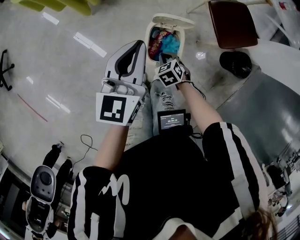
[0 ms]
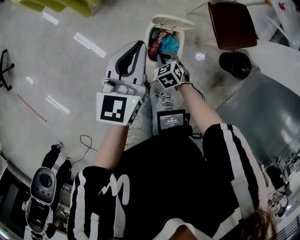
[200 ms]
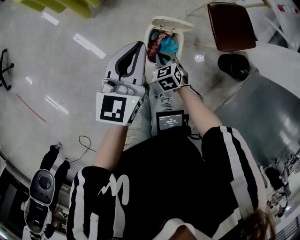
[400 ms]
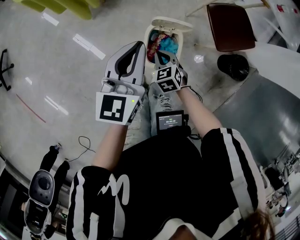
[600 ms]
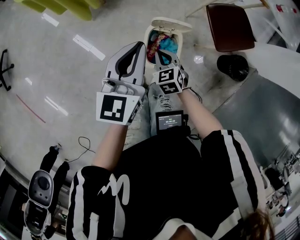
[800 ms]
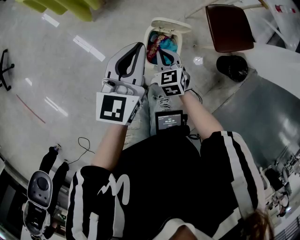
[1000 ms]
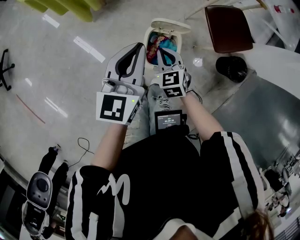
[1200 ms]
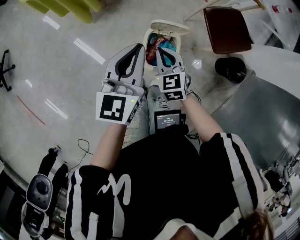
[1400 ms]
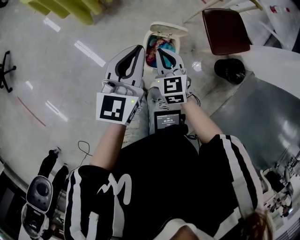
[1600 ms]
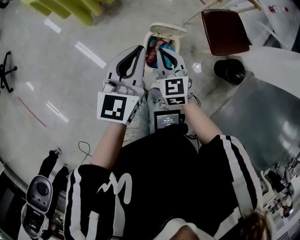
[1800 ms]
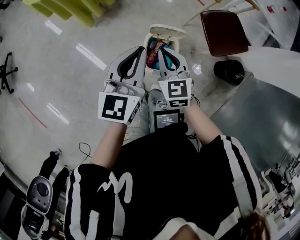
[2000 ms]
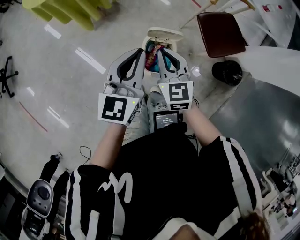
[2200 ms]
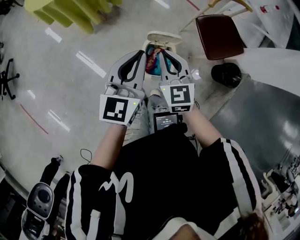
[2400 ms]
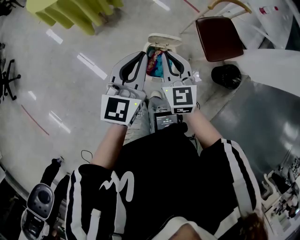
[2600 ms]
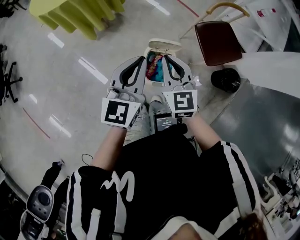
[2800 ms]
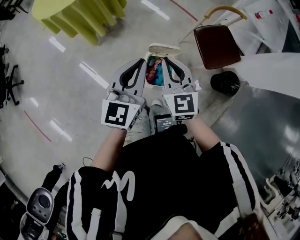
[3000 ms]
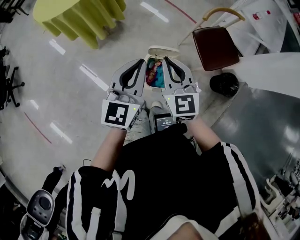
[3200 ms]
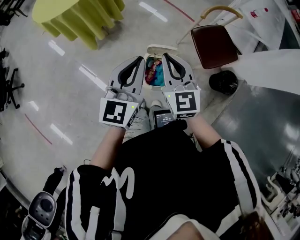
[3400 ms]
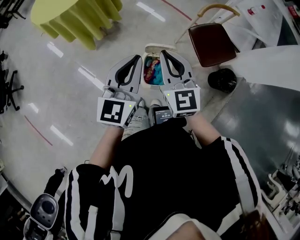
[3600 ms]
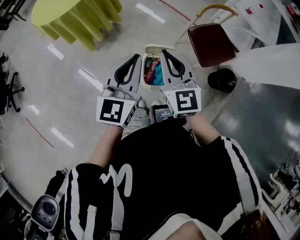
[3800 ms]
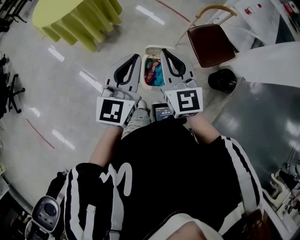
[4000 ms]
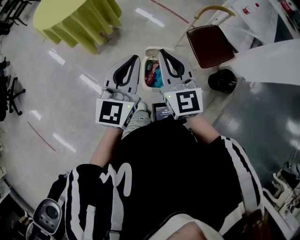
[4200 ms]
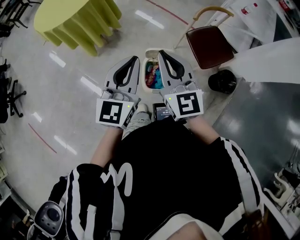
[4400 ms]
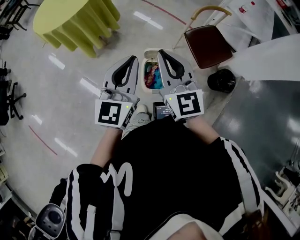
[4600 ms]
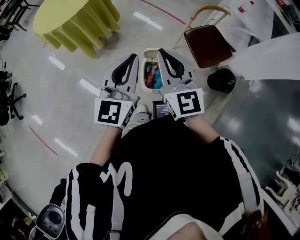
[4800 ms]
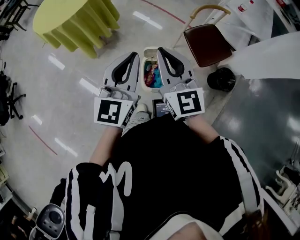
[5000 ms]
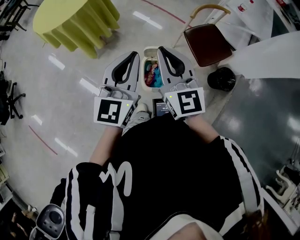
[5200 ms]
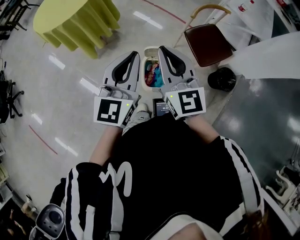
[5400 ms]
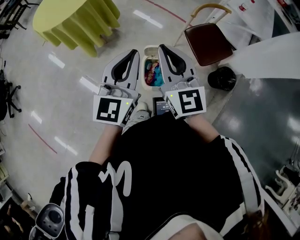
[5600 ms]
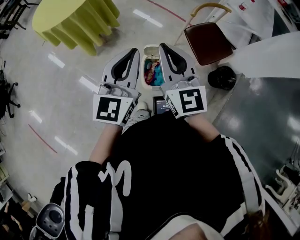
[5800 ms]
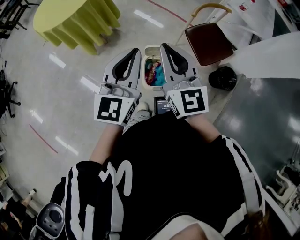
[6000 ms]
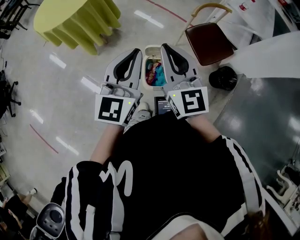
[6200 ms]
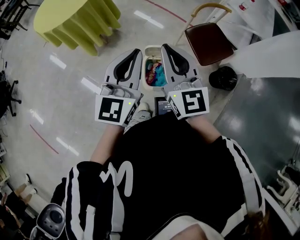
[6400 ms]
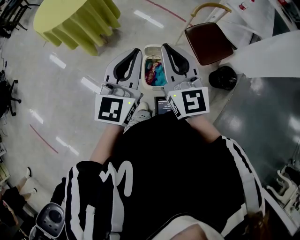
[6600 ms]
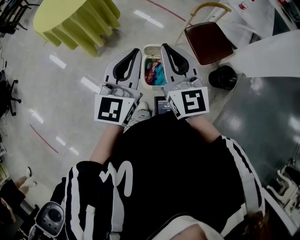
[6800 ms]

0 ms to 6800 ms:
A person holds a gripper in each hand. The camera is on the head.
0 ms to 1400 ms: The right gripper travels upward by about 20 cm, and changes its angle by approximately 30 degrees.
1400 ms to 2800 ms: The left gripper shifts roughly 5 cm upward. The right gripper travels upward by approximately 15 cm.
2800 ms to 4000 ms: The left gripper moves upward, approximately 5 cm; the right gripper shifts about 10 cm upward.
4000 ms to 5400 ms: There are only small adjustments of the grippers.
5400 ms to 6800 ms: Both grippers stay put.

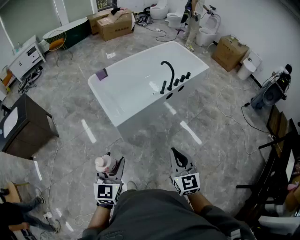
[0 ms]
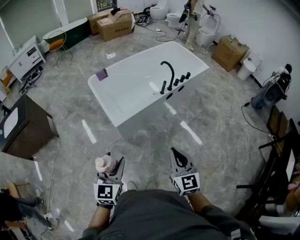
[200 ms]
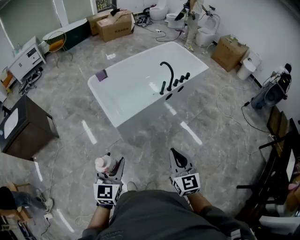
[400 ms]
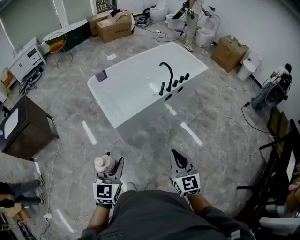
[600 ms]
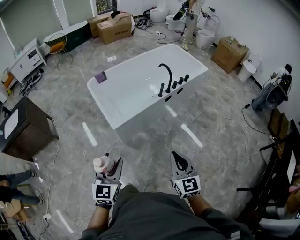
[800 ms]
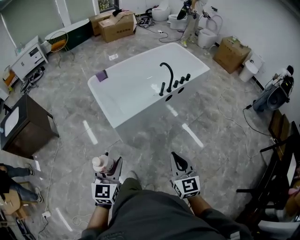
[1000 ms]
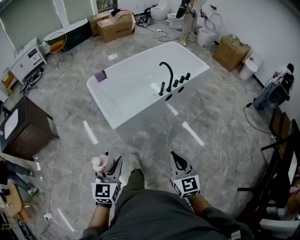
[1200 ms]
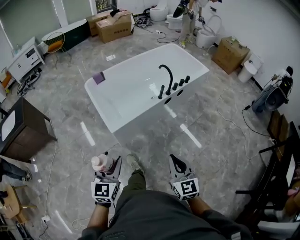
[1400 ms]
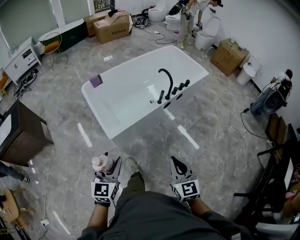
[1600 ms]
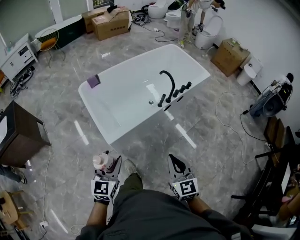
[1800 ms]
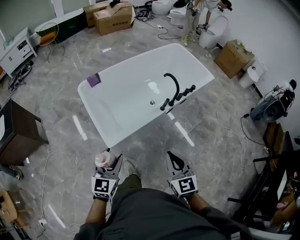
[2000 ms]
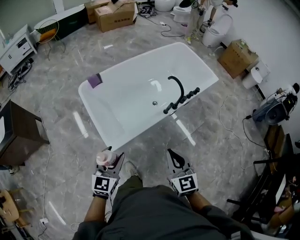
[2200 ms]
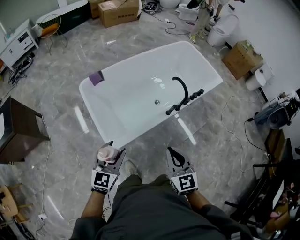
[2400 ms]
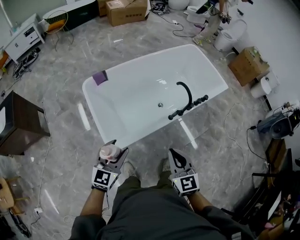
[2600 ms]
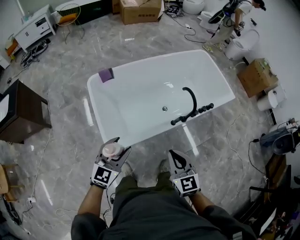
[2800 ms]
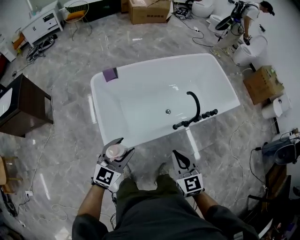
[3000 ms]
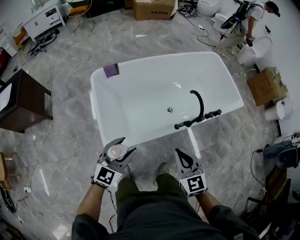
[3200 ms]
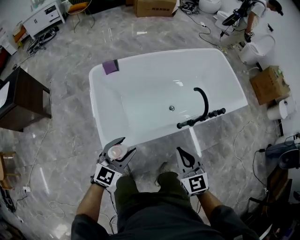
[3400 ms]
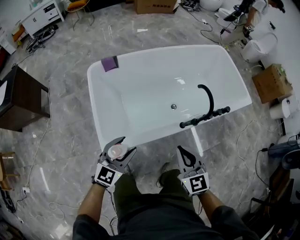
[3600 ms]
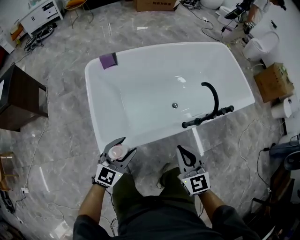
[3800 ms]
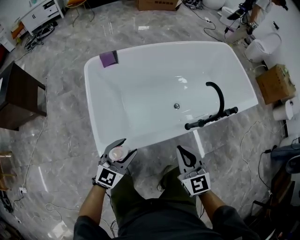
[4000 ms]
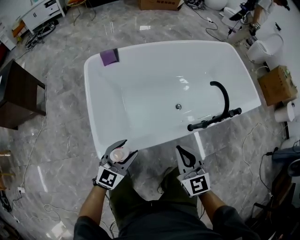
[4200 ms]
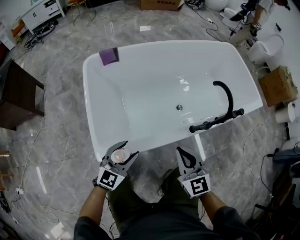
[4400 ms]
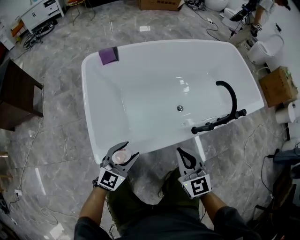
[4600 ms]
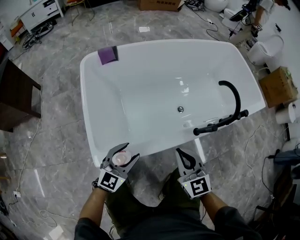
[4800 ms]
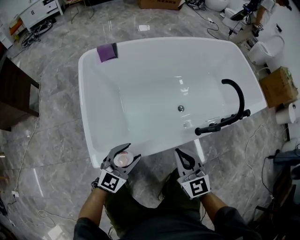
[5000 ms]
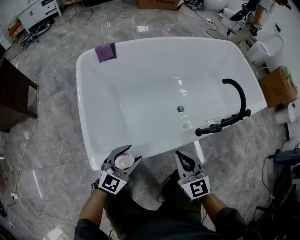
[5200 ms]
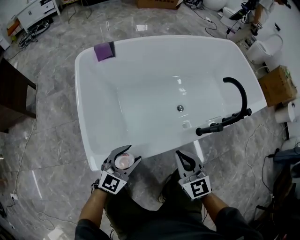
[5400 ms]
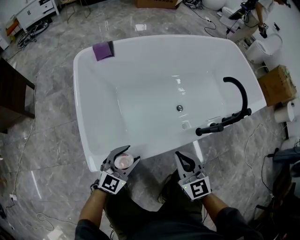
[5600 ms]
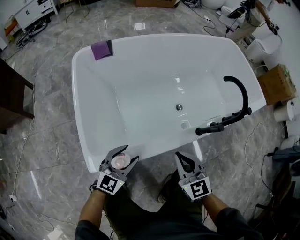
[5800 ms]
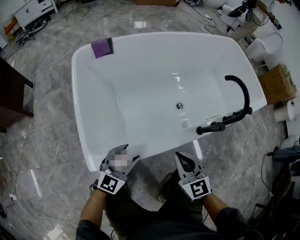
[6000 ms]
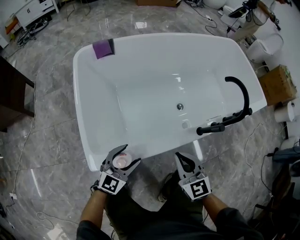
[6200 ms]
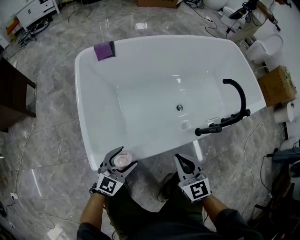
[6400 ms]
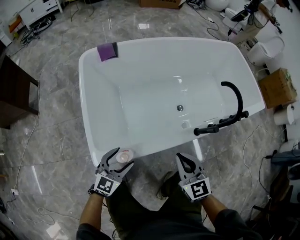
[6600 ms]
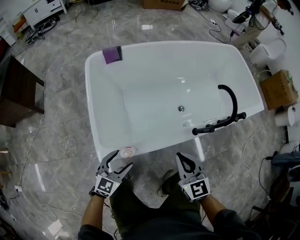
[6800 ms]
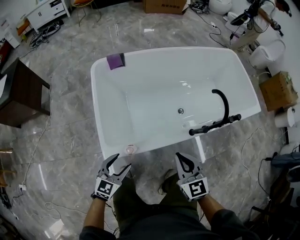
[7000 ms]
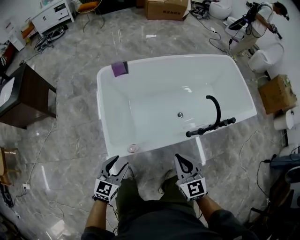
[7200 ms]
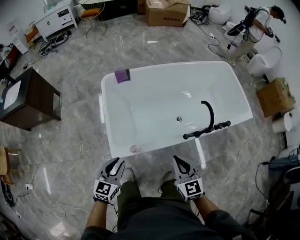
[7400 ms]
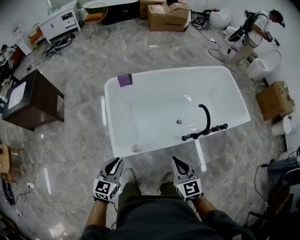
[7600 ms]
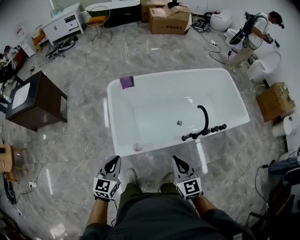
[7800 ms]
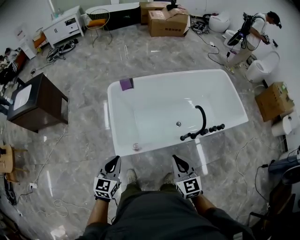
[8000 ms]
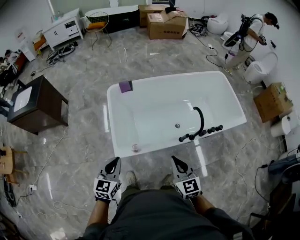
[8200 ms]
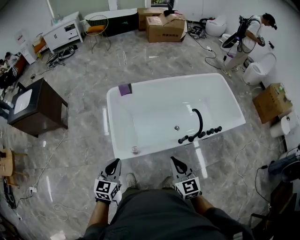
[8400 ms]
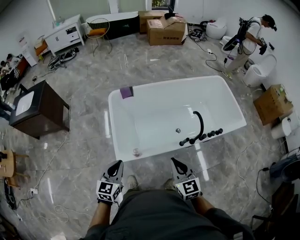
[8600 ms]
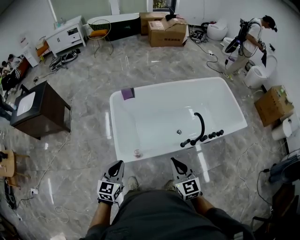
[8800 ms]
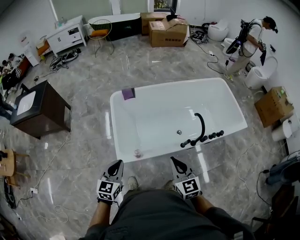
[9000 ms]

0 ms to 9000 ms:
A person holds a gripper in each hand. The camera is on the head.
0 ms to 1600 ms: Both grippers move forward, approximately 10 cm.
1600 ms to 3000 ms: Both grippers move forward, roughly 35 cm. The right gripper turns by approximately 20 degrees.
3000 ms to 4400 ms: Both grippers travel together downward, roughly 25 cm.
4400 ms to 6000 ms: Both grippers travel together downward, roughly 10 cm.
6000 ms to 7600 ms: The grippers both shift upward by some 35 cm. The left gripper swivels approximately 30 degrees, and closes up.
7600 ms to 9000 ms: The grippers both shift upward by roughly 5 cm.

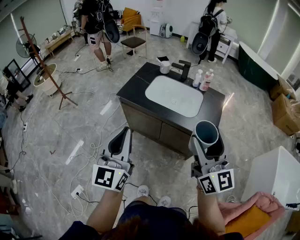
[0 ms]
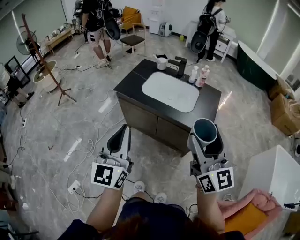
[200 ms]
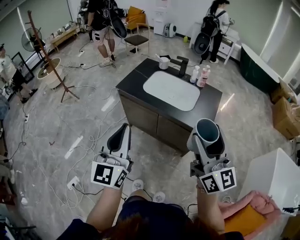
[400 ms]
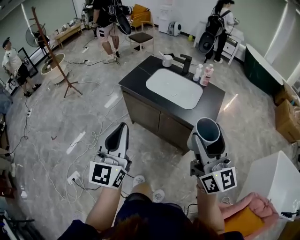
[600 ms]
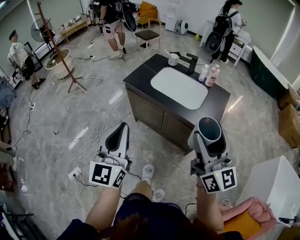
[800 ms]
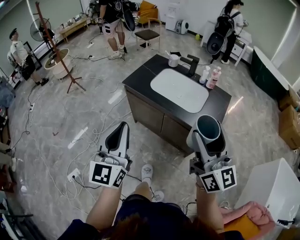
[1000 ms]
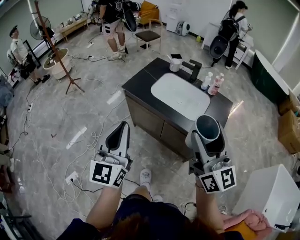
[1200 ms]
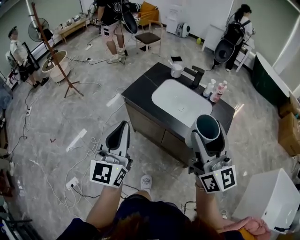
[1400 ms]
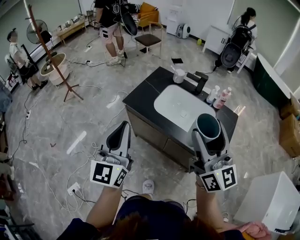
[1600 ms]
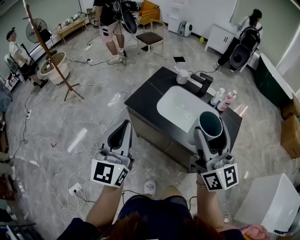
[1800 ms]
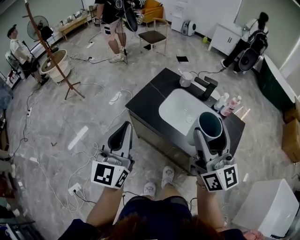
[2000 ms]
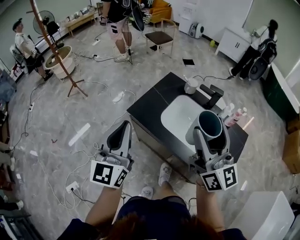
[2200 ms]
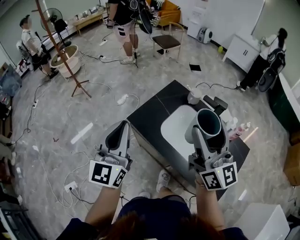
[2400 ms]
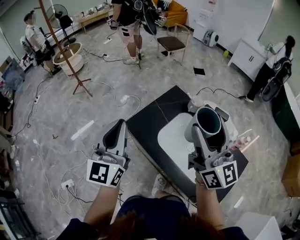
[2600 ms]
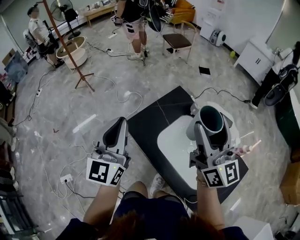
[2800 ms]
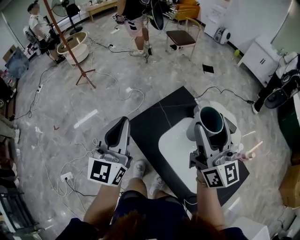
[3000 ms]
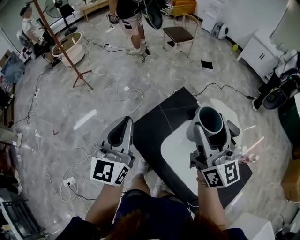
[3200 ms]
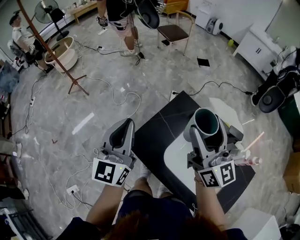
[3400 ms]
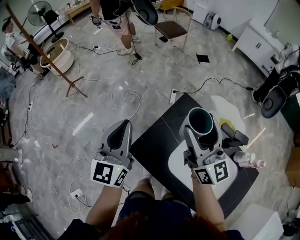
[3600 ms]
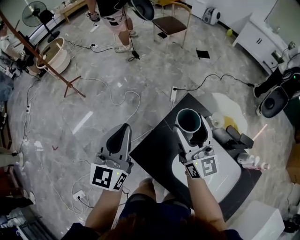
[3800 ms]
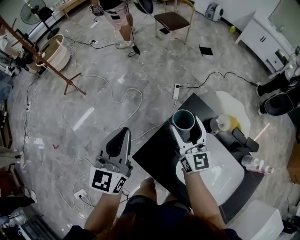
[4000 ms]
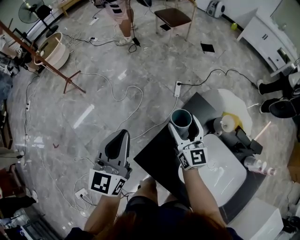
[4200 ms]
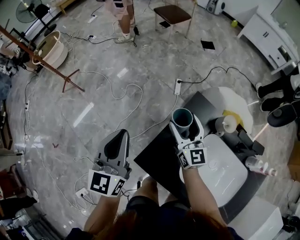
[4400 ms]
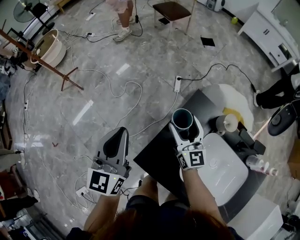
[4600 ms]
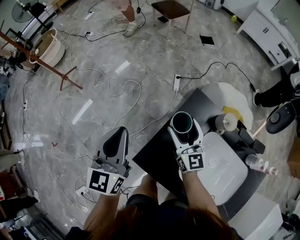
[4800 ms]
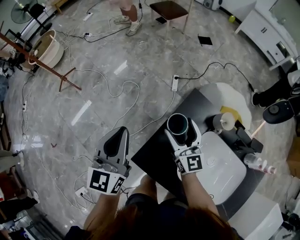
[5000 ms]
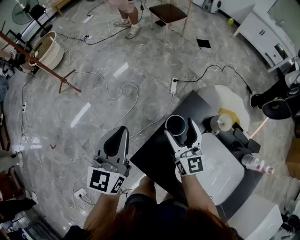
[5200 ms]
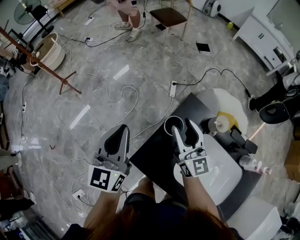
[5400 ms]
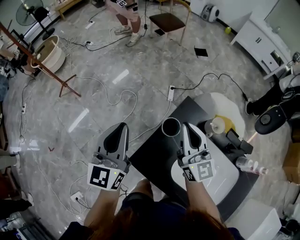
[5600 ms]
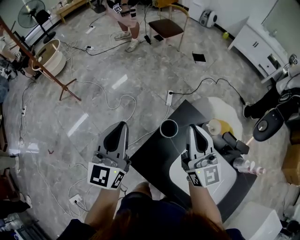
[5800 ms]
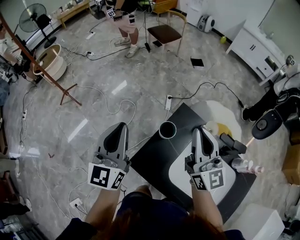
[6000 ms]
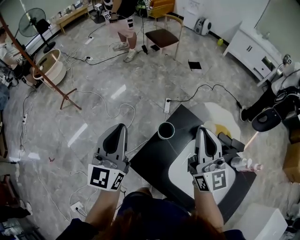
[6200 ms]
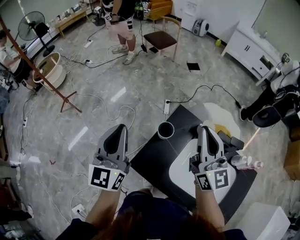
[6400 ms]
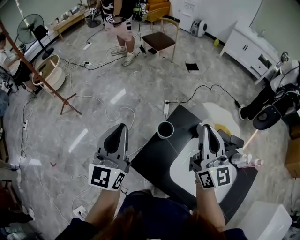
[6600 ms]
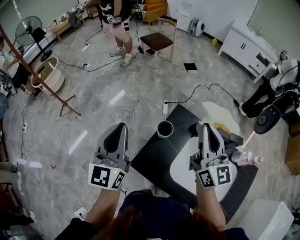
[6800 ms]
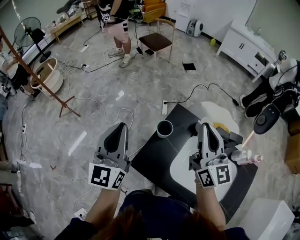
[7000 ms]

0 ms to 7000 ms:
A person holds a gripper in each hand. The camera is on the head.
0 ms to 1400 ms: The grippers both shift forward by some 10 cm.
1400 ms to 2800 ms: The pair of grippers is taken forward, some 40 cm.
2800 ms to 4200 ms: Both grippers move forward and downward, about 40 cm. The right gripper swivels about 20 degrees.
4200 ms to 5600 ms: The right gripper moves upward, approximately 10 cm, and closes its fingers.
5600 ms to 7000 ms: The right gripper travels upward, to the right and backward by about 15 cm. Meanwhile the left gripper shifts some 10 cm upward.

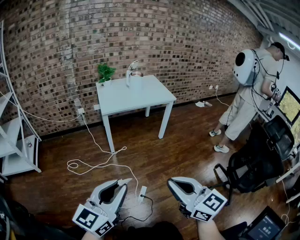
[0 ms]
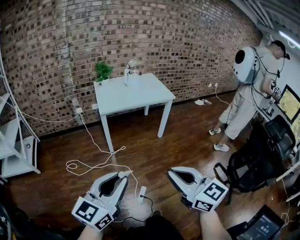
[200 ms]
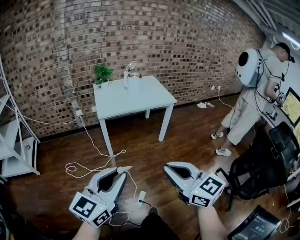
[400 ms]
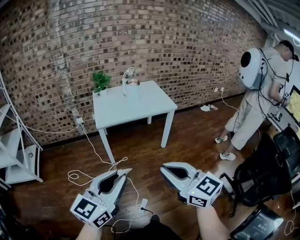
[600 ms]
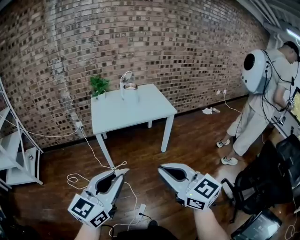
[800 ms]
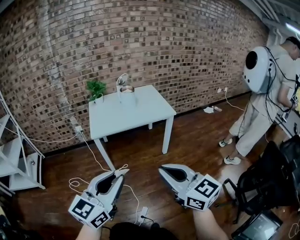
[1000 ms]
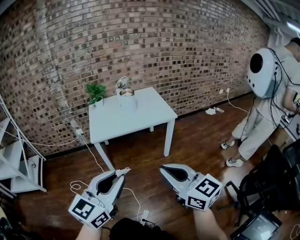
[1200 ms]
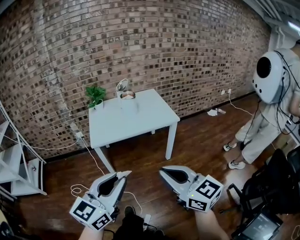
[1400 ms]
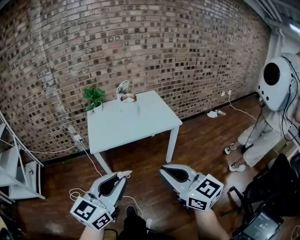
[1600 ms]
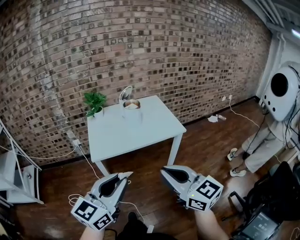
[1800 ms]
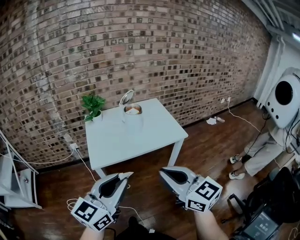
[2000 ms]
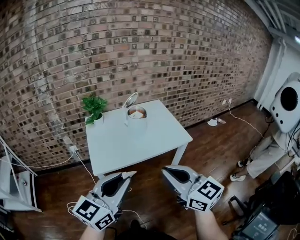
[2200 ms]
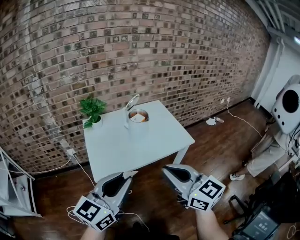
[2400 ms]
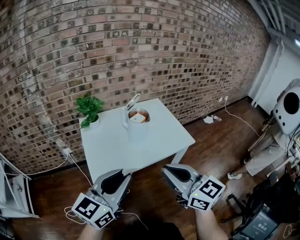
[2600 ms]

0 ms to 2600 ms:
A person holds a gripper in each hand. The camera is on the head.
0 ms to 1200 ms: Both grippers move forward and to the right, approximately 30 cm.
1200 ms to 2600 ms: Both grippers travel together forward, approximately 35 cm.
